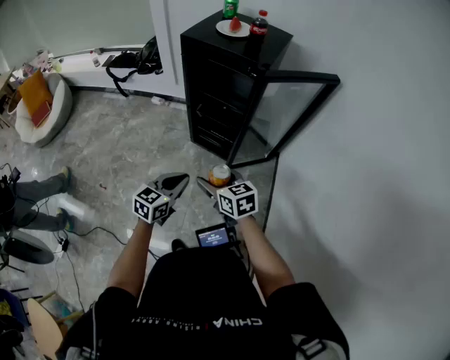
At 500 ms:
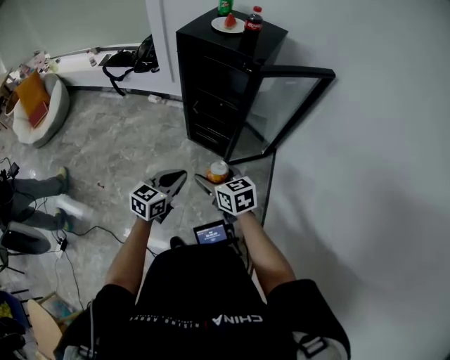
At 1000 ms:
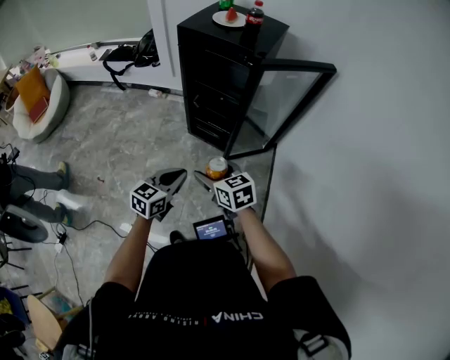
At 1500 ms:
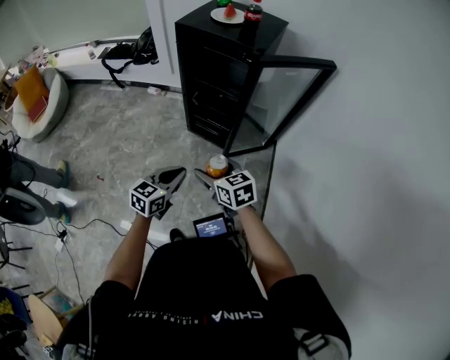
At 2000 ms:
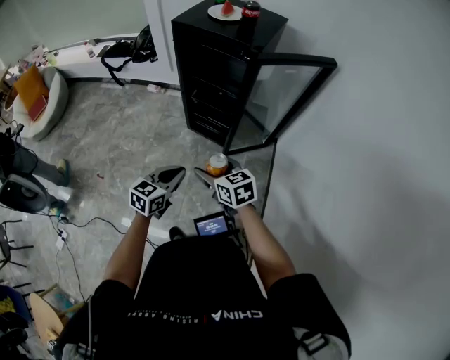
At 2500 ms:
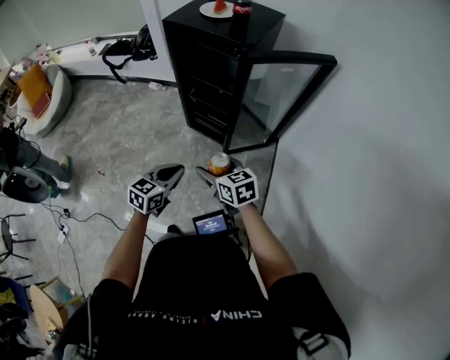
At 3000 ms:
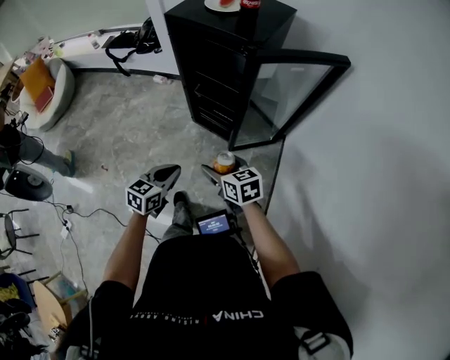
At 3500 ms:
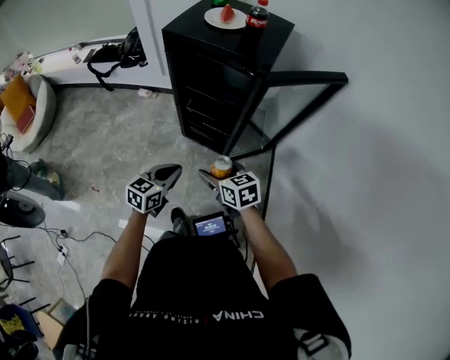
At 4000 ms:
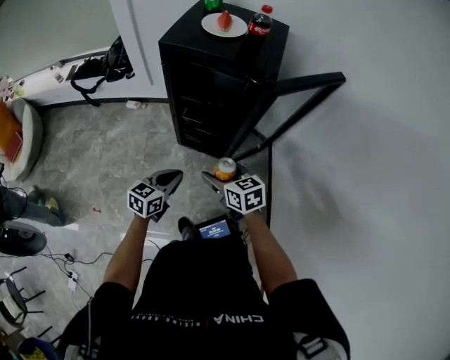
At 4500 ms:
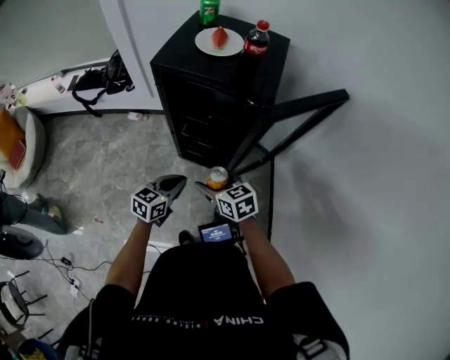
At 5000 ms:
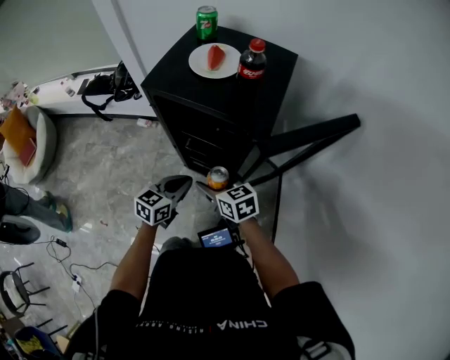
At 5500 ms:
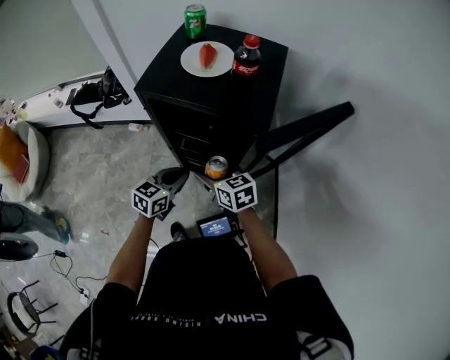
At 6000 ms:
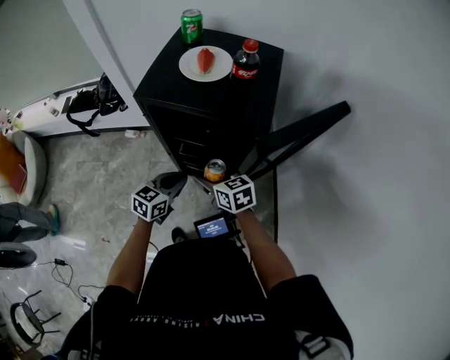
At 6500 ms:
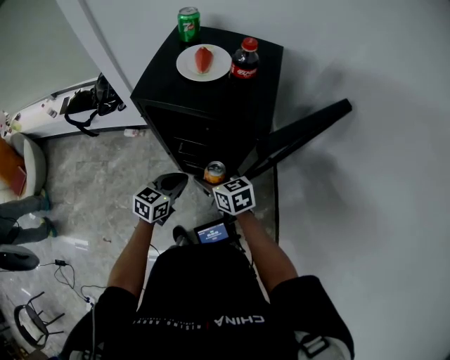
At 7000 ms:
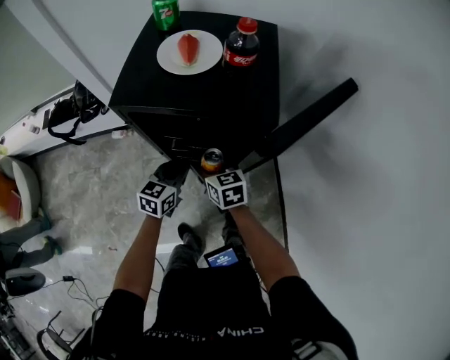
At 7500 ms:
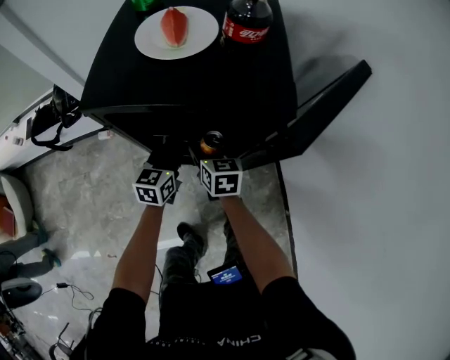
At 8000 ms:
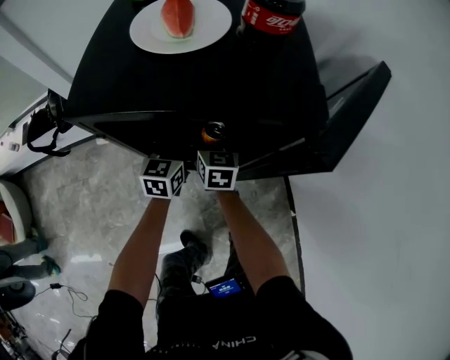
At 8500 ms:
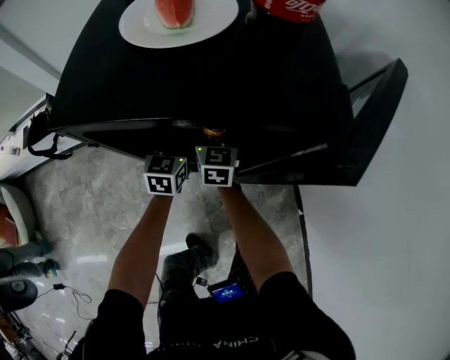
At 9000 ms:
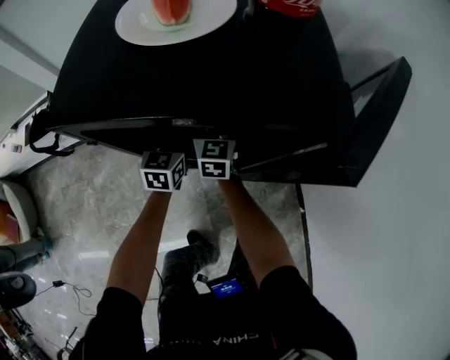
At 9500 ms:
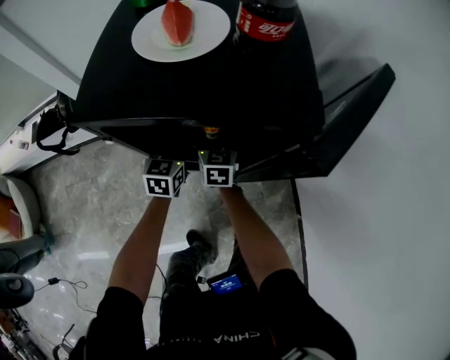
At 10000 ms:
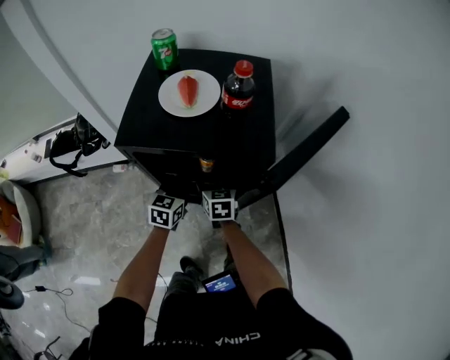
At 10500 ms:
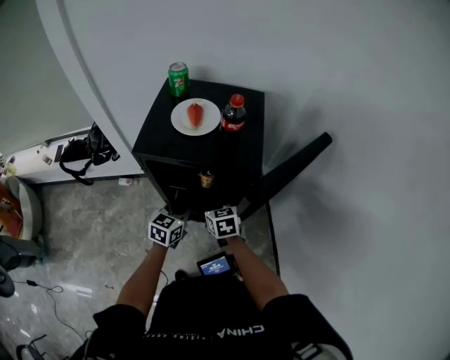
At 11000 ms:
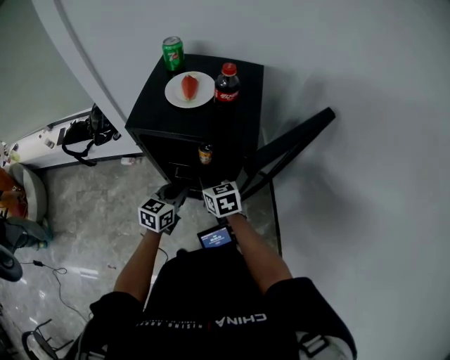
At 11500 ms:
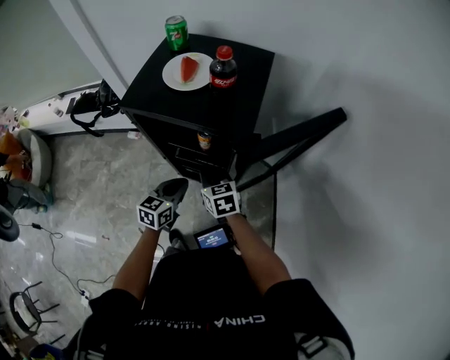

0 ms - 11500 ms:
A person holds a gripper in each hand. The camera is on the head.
0 ms - 2000 ms: The grippers move only a little.
2000 ms - 4000 ms: The left gripper travels forward and to the left by about 20 cm; the right gripper moves forward, roughly 15 cm.
4000 ms - 6000 ms: The grippers both shift forward by about 20 cm.
6000 ms - 7500 ms: Both grippers move forward and downward, about 15 cm. The right gripper swivels roughly 30 degrees.
7500 ms - 9500 ms: Both grippers move forward, some 5 cm.
9500 ms - 11500 ms: The right gripper shifts some 20 cm backward and upward, changes its angle by about 30 degrees, and closes up; the left gripper shifts roughly 25 cm backward, upward and to the right.

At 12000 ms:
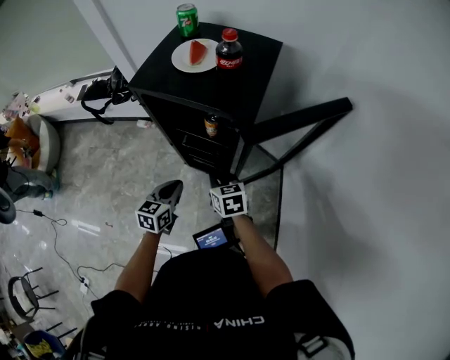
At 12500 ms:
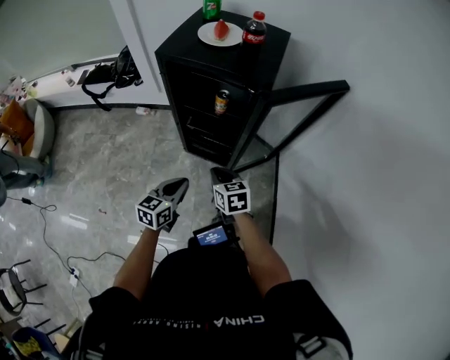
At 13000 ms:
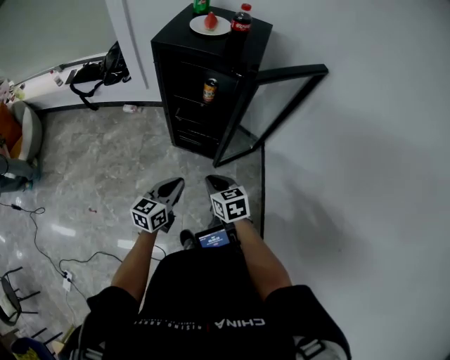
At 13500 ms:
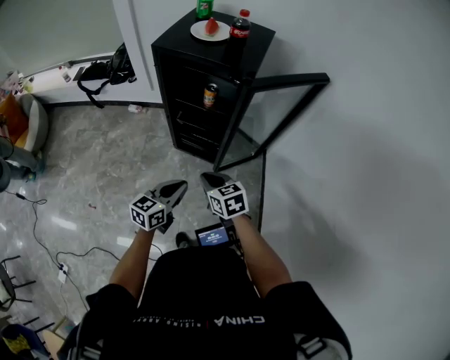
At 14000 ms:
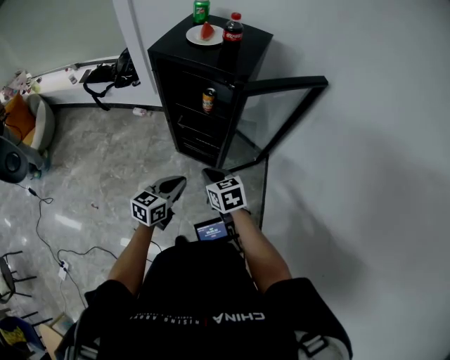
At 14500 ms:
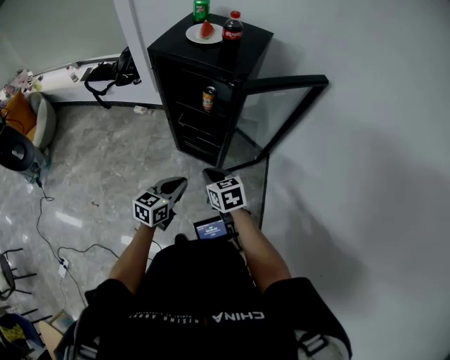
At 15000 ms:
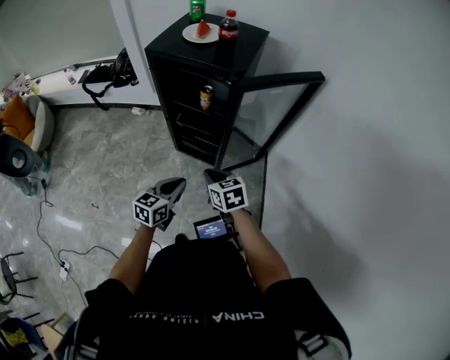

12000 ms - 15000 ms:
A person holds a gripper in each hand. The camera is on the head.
12000 ms - 13500 ms: Both grippers move backward, approximately 20 cm.
13500 ms - 15000 ms: The right gripper ends up approximately 5 cm from where it was.

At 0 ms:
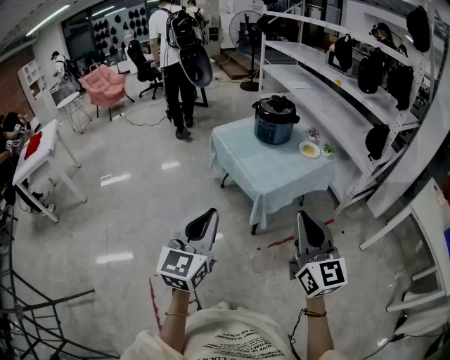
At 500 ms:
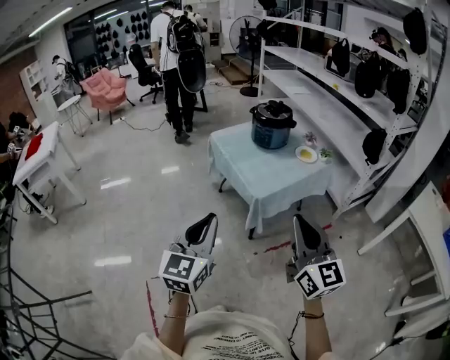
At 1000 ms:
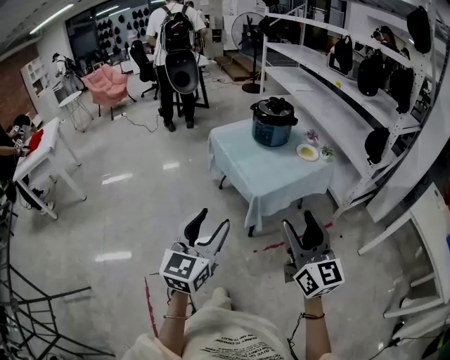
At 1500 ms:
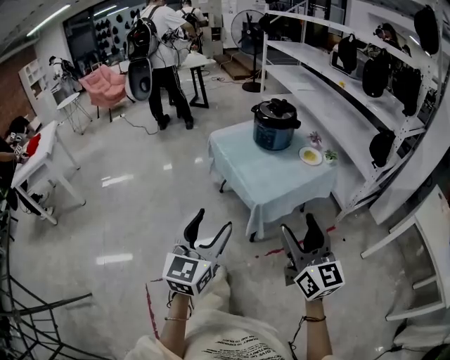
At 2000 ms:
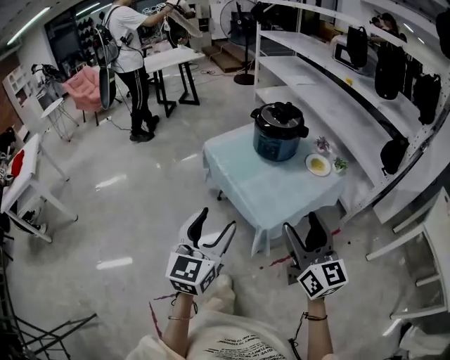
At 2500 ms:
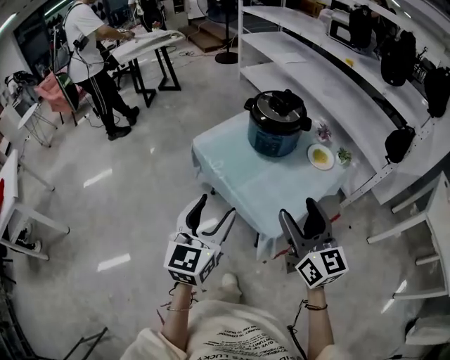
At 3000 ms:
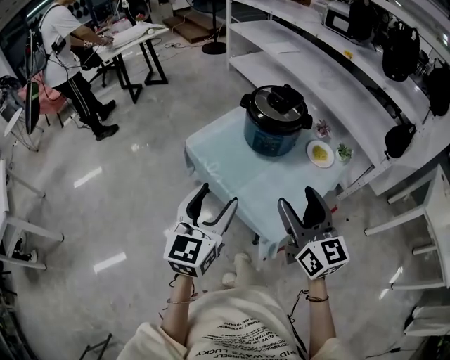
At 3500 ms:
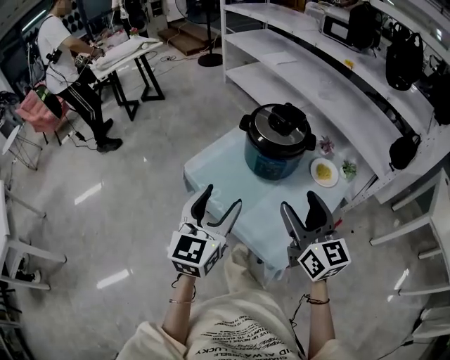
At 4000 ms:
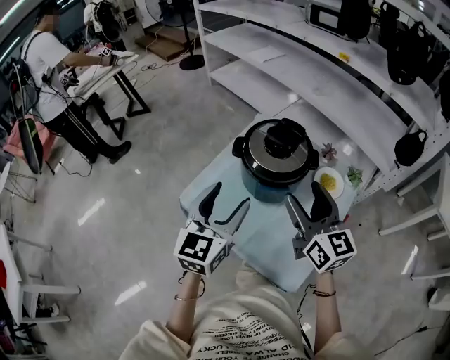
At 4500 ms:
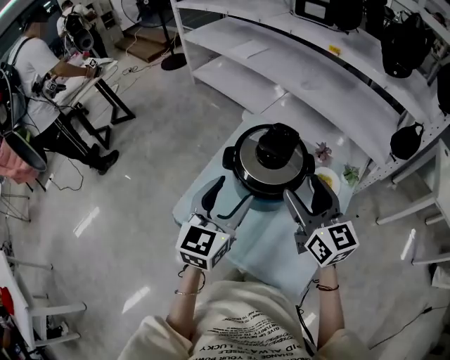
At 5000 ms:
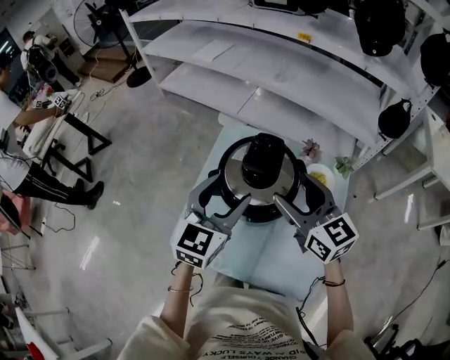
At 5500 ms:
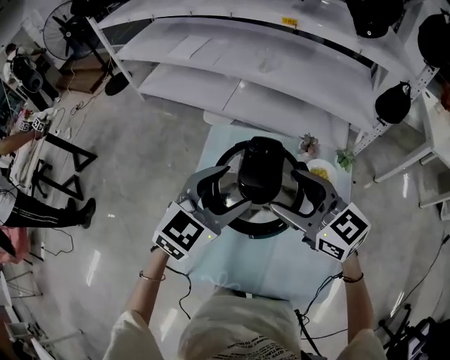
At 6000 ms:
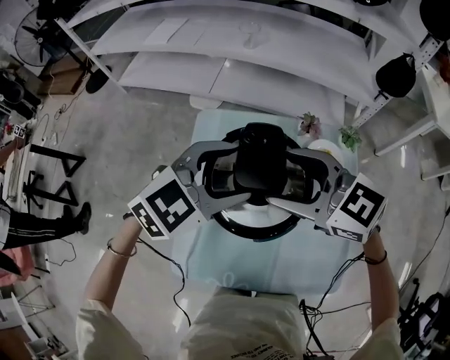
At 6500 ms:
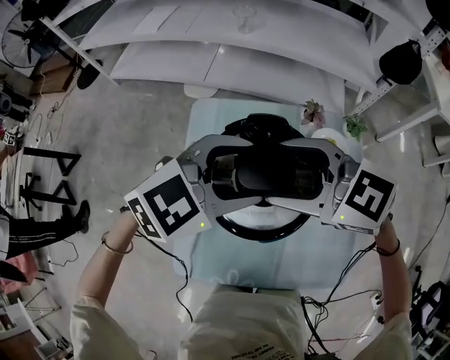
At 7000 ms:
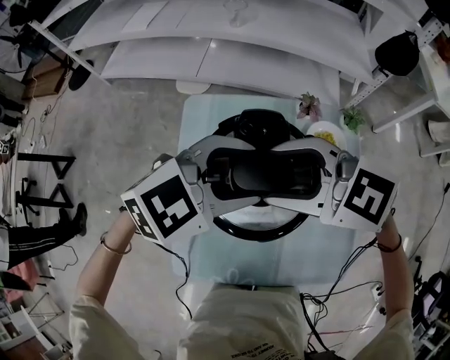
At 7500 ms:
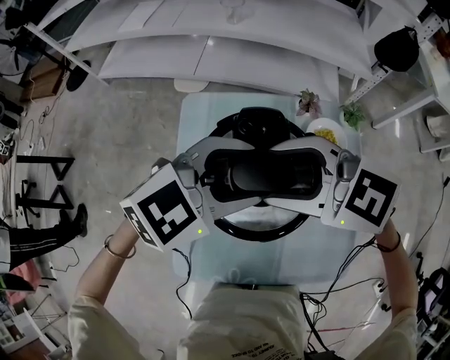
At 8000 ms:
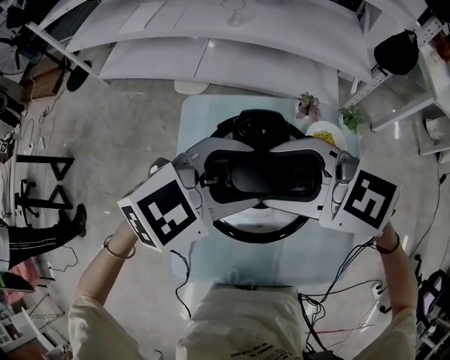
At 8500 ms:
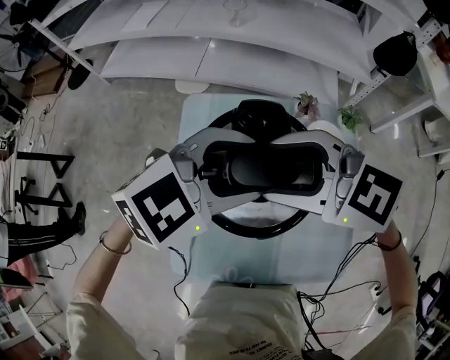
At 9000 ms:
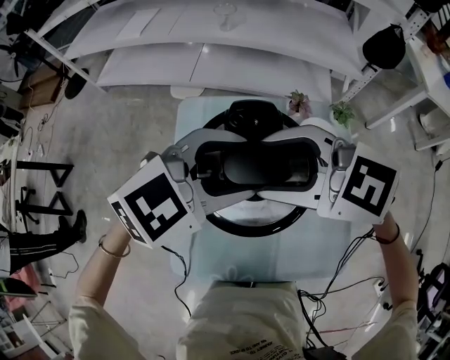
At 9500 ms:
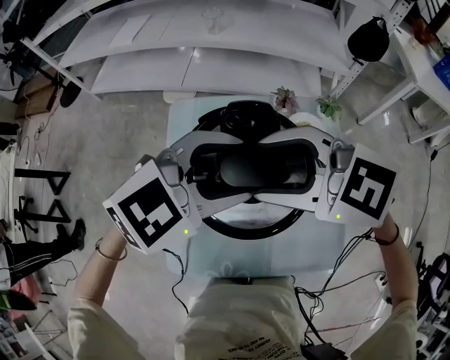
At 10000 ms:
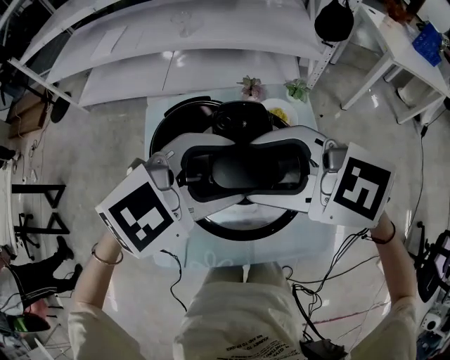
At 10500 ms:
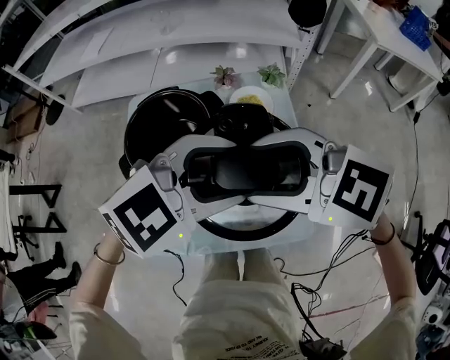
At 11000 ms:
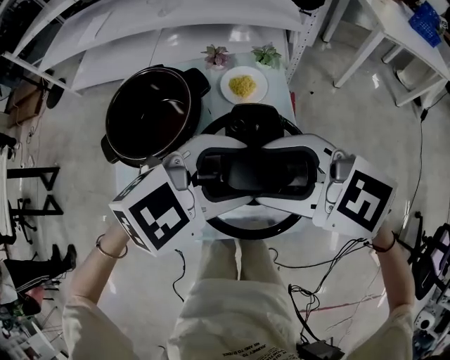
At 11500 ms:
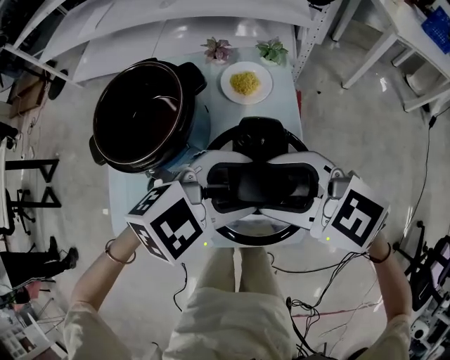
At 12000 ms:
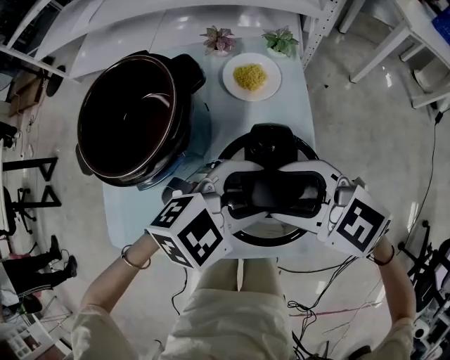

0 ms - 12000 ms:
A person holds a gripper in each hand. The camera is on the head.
0 ms - 2000 ms: The two grippers go some 20 cm forward. The left gripper opens up. Meanwhile the right gripper opens up.
2000 ms - 4000 ms: The grippers both shift forward by roughly 40 cm. The left gripper rotates about 20 degrees.
4000 ms - 6000 ms: The left gripper ends up roughly 25 cm from where it was, and changes its angle by approximately 80 degrees. Meanwhile the right gripper shifts by approximately 20 cm, and rotates about 30 degrees.
6000 ms - 8000 ms: The grippers move only a little.
8000 ms - 10000 ms: The left gripper ends up roughly 15 cm from where it was. Meanwhile the right gripper moves approximately 15 cm.
10000 ms - 12000 ms: Both grippers travel together downward, about 20 cm.
